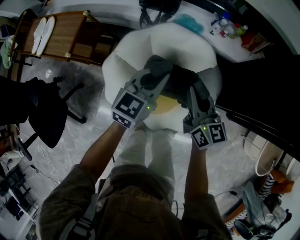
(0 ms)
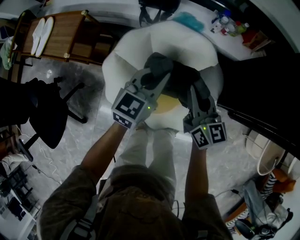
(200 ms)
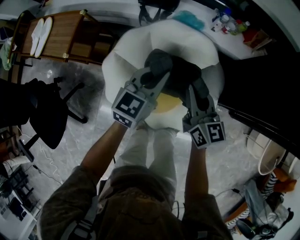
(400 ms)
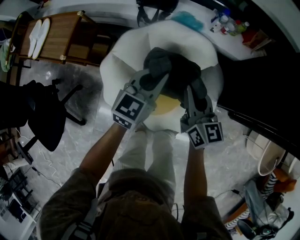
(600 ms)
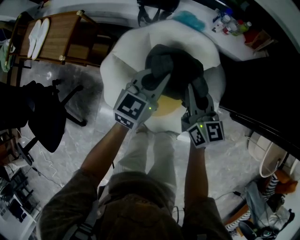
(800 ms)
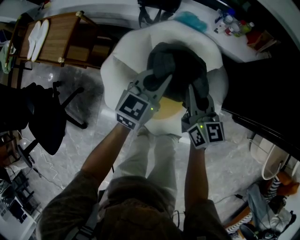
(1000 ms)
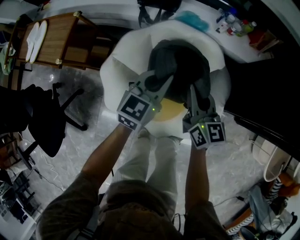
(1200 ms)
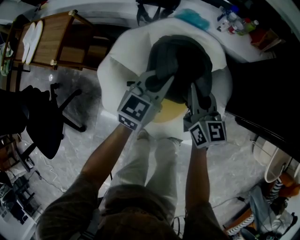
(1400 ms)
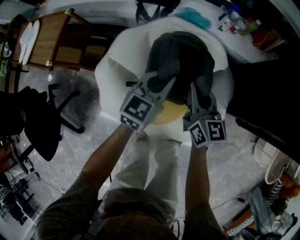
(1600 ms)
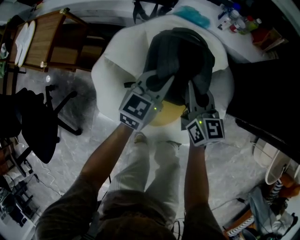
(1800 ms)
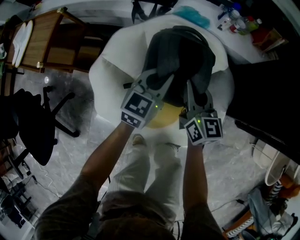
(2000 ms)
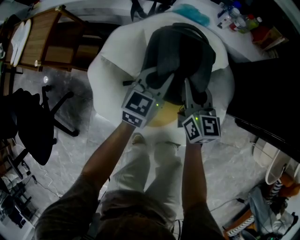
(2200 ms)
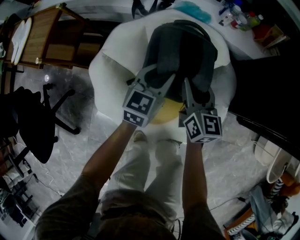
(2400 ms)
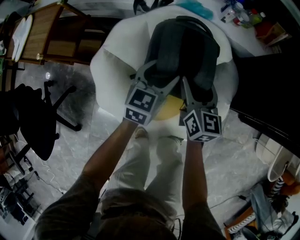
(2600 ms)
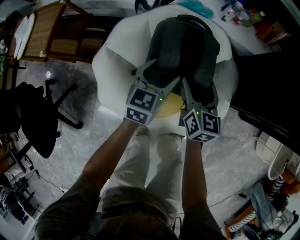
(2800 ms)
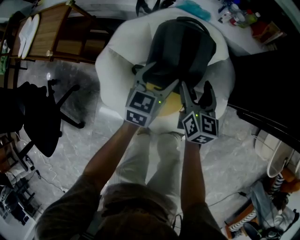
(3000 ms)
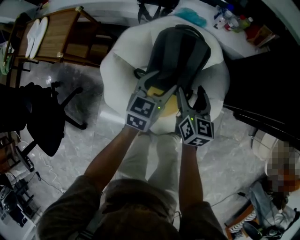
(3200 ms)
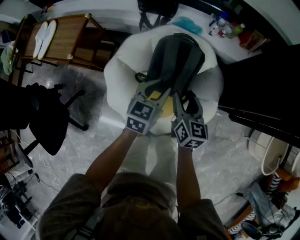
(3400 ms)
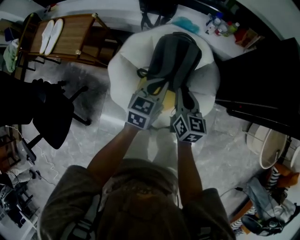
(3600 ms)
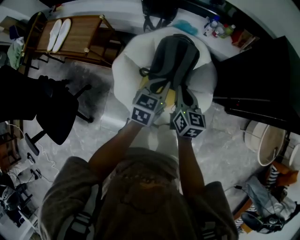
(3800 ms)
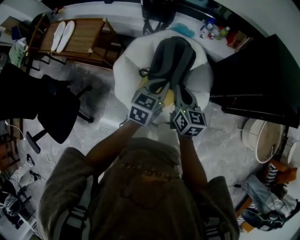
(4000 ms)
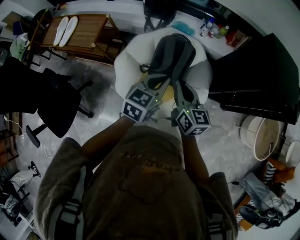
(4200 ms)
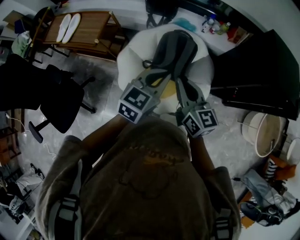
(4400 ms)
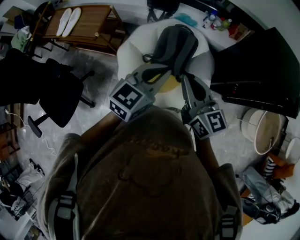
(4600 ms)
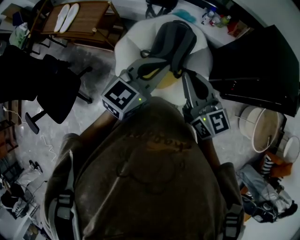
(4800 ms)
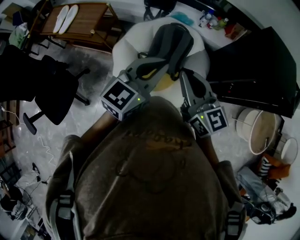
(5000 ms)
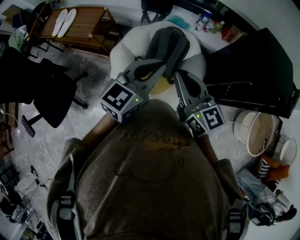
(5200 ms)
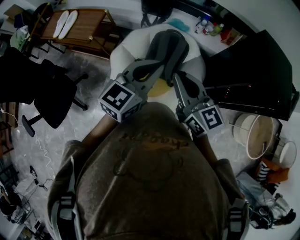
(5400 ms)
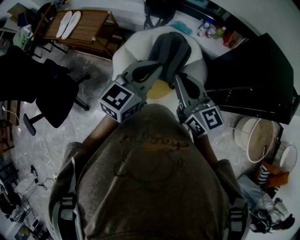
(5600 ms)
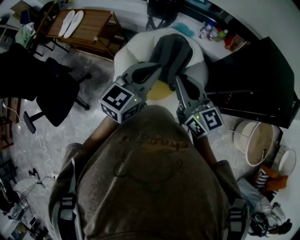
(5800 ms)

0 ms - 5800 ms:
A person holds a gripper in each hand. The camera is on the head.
0 ms - 1400 ms: The two grippers go about 10 cm downward.
1400 ms - 2800 ms: Both grippers move downward, approximately 10 cm. The right gripper opens; the left gripper opens up.
2800 ms - 4400 ms: Both grippers move upward and backward, some 40 cm. The right gripper changes its angle by approximately 20 degrees, and closes up, while the left gripper closes.
4400 ms - 5800 ms: The grippers both shift upward by roughly 5 cm.

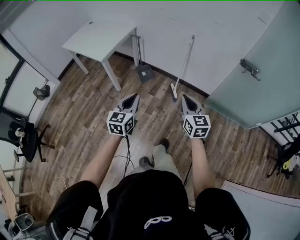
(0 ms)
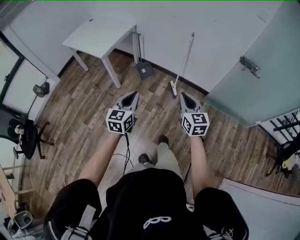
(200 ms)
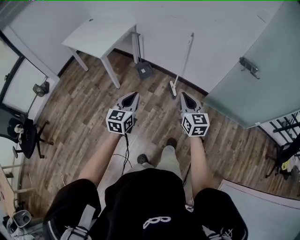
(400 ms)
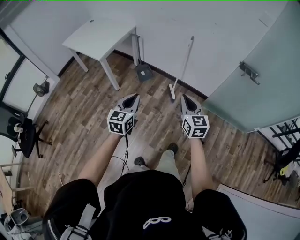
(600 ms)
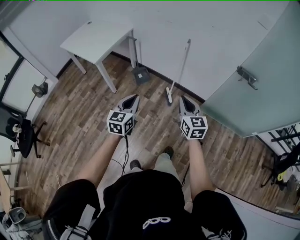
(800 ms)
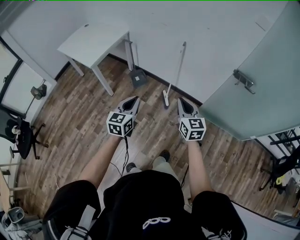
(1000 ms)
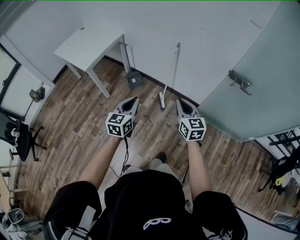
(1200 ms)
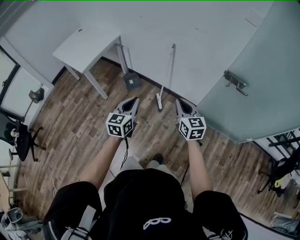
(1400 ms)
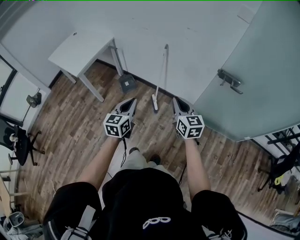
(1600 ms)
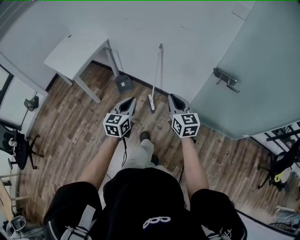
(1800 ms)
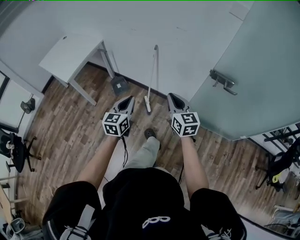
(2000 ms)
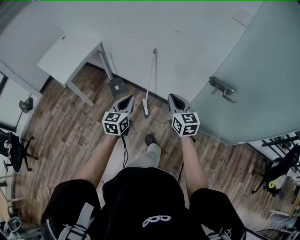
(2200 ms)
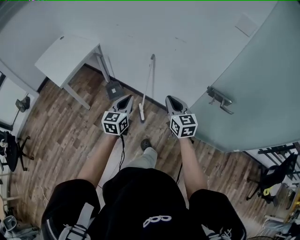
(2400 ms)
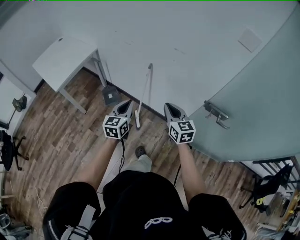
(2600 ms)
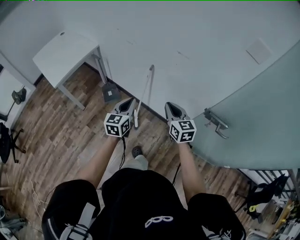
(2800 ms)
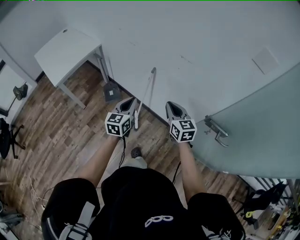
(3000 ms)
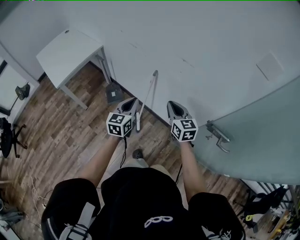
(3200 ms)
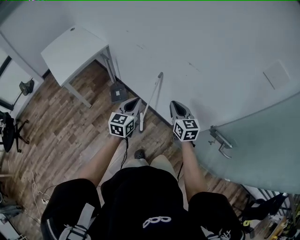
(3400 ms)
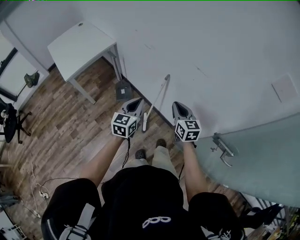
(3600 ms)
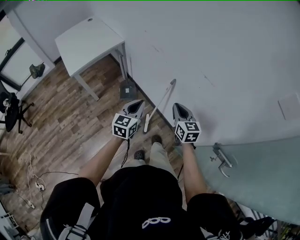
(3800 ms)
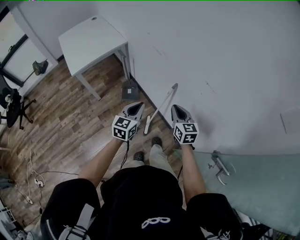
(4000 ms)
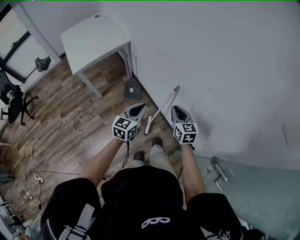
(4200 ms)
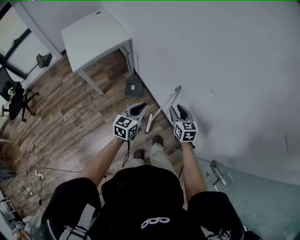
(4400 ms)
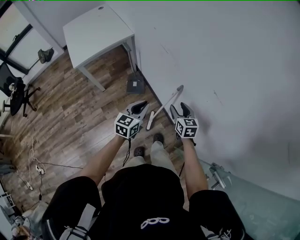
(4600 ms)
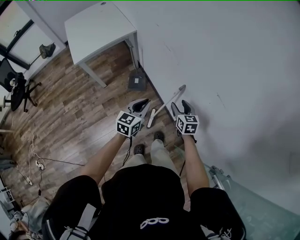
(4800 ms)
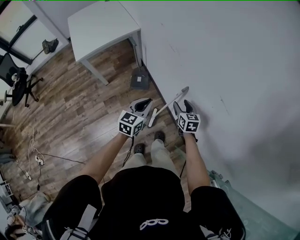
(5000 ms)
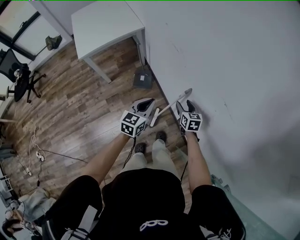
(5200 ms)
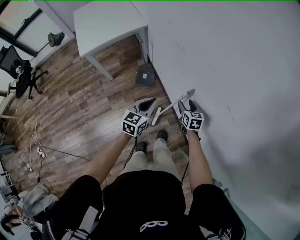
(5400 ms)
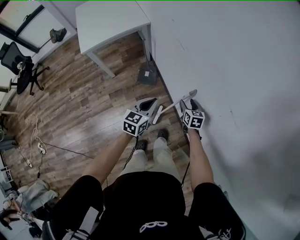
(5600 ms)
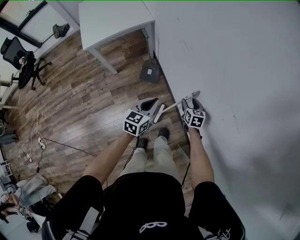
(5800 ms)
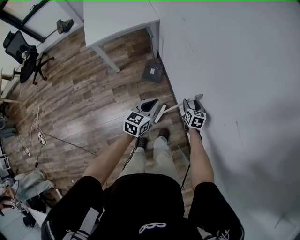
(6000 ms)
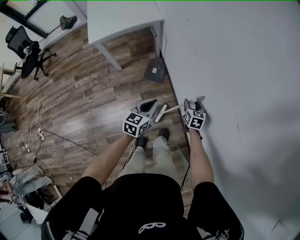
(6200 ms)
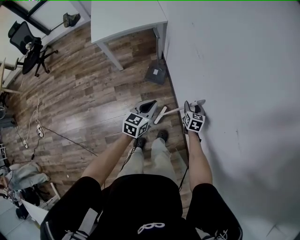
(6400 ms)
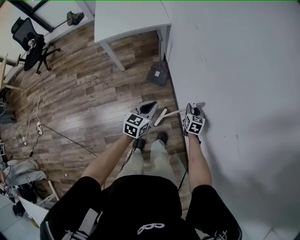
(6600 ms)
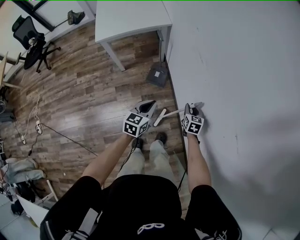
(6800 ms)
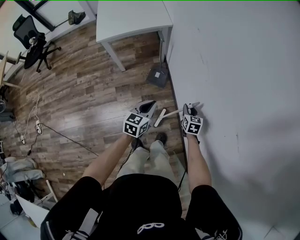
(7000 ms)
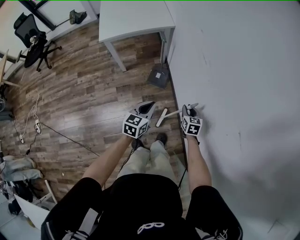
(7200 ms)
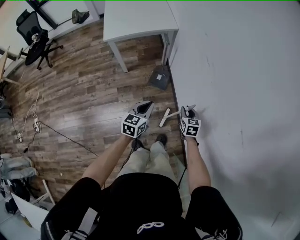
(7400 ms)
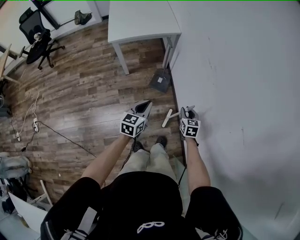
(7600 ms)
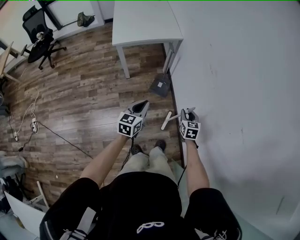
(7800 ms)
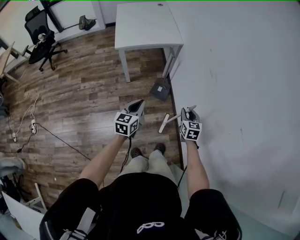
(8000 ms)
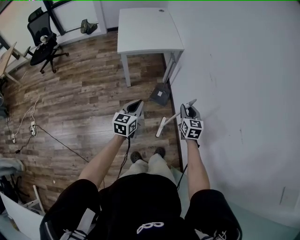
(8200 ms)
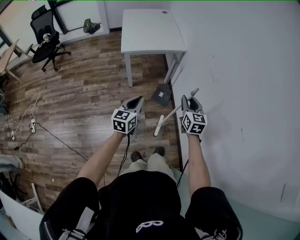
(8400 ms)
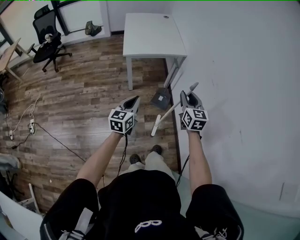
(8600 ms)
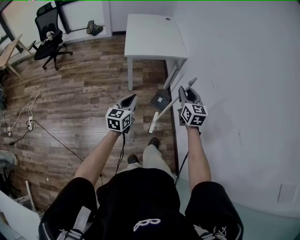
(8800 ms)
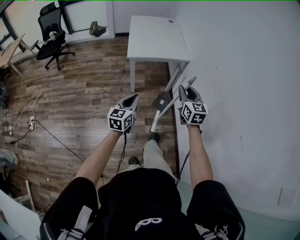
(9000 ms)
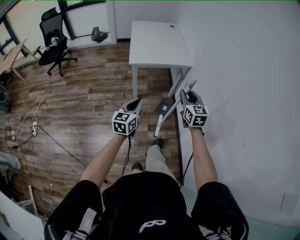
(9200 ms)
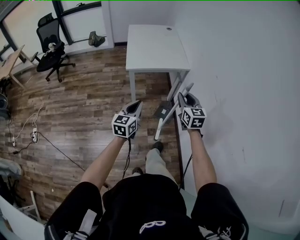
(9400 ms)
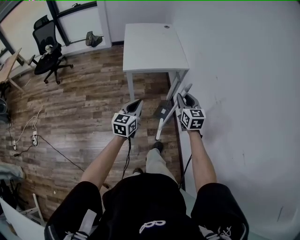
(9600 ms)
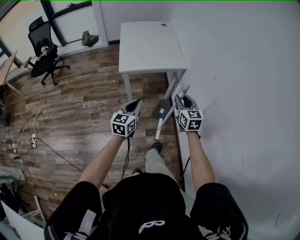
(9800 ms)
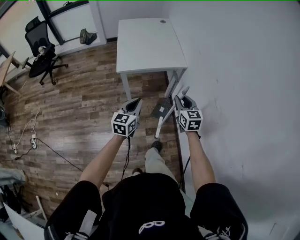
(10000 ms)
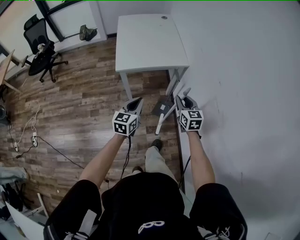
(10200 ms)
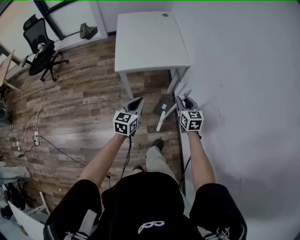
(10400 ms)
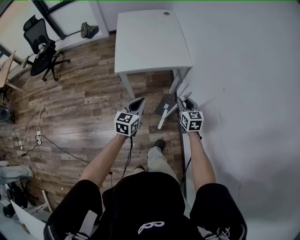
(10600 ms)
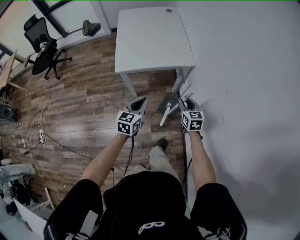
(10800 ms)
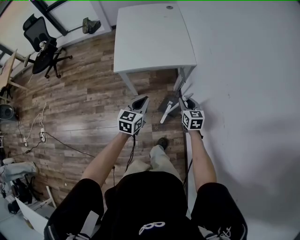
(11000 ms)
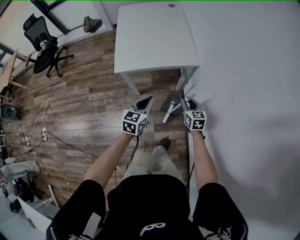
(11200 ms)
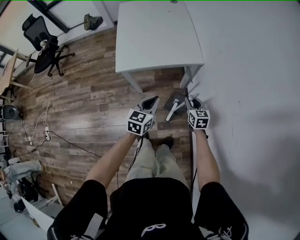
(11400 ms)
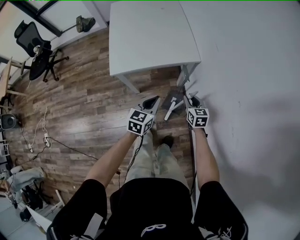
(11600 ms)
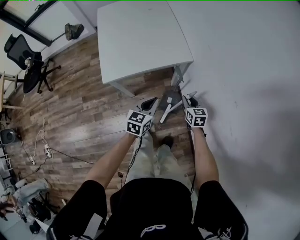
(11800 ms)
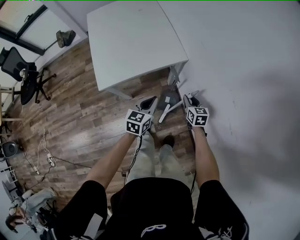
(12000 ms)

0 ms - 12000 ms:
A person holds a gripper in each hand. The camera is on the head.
0 ms - 1600 ms: Both grippers move to the right and forward, about 30 cm.
1600 ms - 3000 ms: The left gripper goes approximately 30 cm forward and to the right. Meanwhile the right gripper shifts approximately 30 cm forward.
3000 ms - 4400 ms: The left gripper goes approximately 10 cm forward and downward. The right gripper shifts some 20 cm forward and downward, and opens its fingers.
4400 ms - 6000 ms: The left gripper heads downward and forward, covering roughly 10 cm; the right gripper is displaced downward and forward by roughly 25 cm, and opens its fingers.
6000 ms - 7600 ms: The right gripper heads to the left and upward, covering approximately 10 cm, and closes. Meanwhile the left gripper moves to the left, about 10 cm.
7600 ms - 9000 ms: The right gripper shifts roughly 35 cm upward and to the left, and swivels roughly 30 degrees; the left gripper moves to the left and upward, roughly 20 cm.
9000 ms - 10400 ms: The right gripper is displaced forward and downward by some 25 cm, while the left gripper travels forward by about 25 cm.
10400 ms - 12000 ms: The left gripper goes about 20 cm forward, downward and to the right, while the right gripper heads downward and forward, covering roughly 20 cm, and changes its angle by approximately 20 degrees.

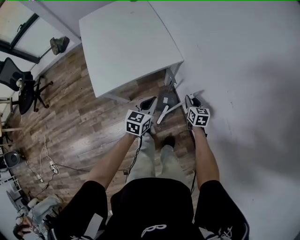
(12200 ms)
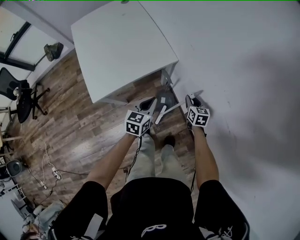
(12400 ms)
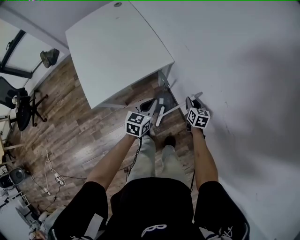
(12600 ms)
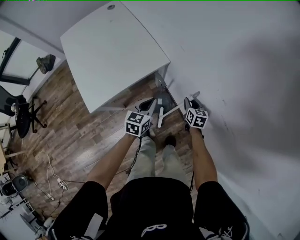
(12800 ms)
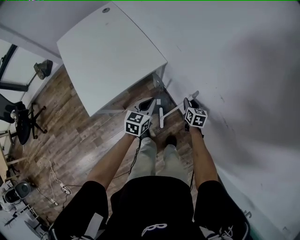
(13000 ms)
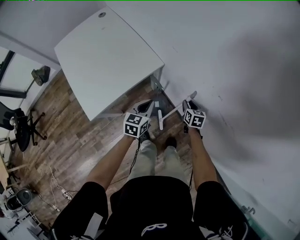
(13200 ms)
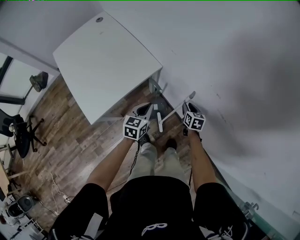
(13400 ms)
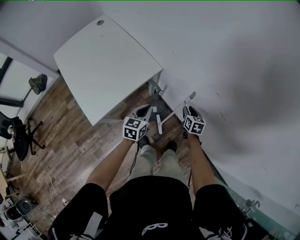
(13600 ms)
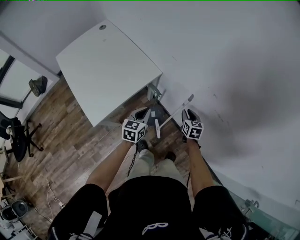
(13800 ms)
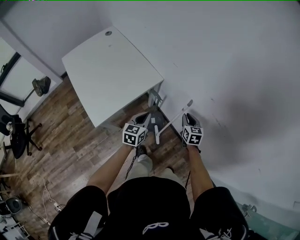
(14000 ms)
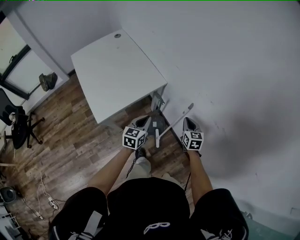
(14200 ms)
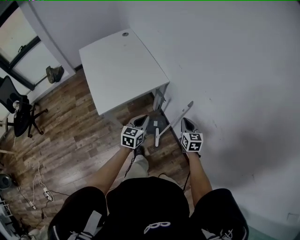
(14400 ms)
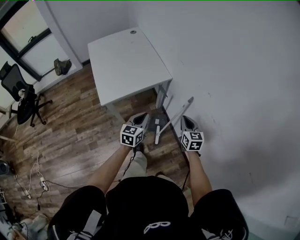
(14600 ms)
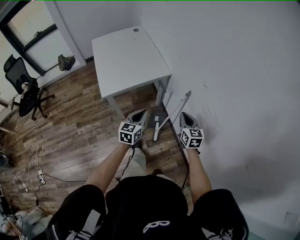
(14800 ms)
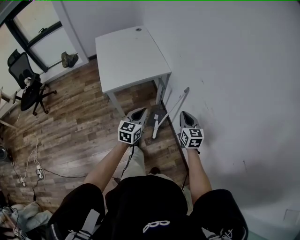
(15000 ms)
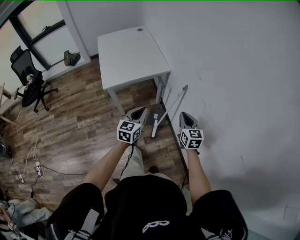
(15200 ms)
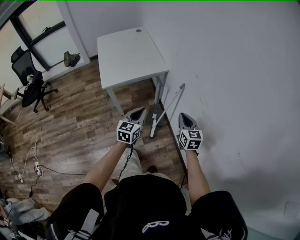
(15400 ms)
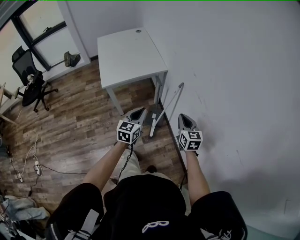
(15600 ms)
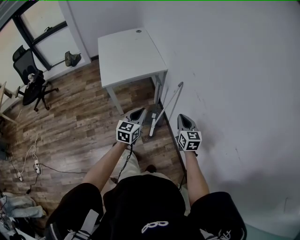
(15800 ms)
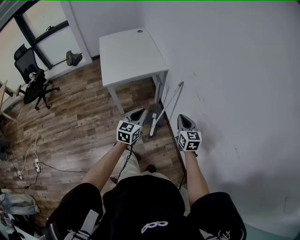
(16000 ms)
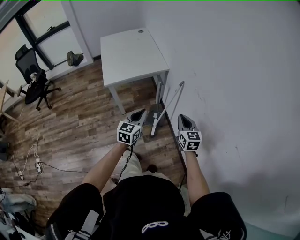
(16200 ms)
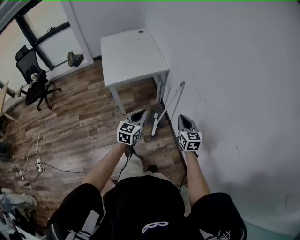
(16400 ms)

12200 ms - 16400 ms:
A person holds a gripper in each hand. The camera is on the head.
12200 ms - 13600 ms: The right gripper is displaced to the right by approximately 5 cm, and turns by some 30 degrees.
13600 ms - 15000 ms: The right gripper moves upward and backward, roughly 25 cm, rotates approximately 40 degrees, and closes. The left gripper shifts roughly 25 cm backward and upward, and changes its angle by about 30 degrees.
15000 ms - 16400 ms: Both grippers travel together backward, some 10 cm.

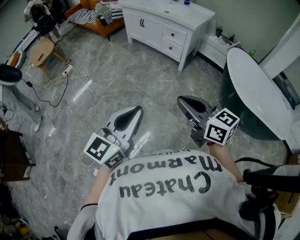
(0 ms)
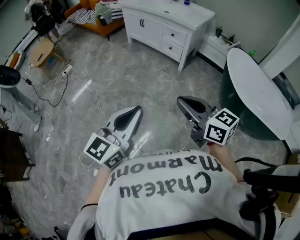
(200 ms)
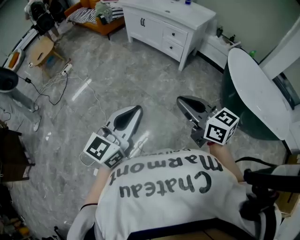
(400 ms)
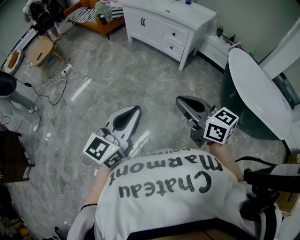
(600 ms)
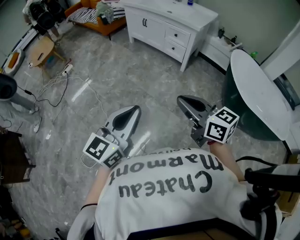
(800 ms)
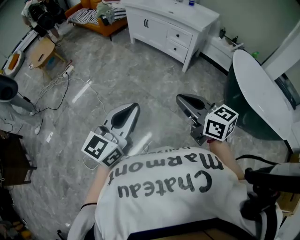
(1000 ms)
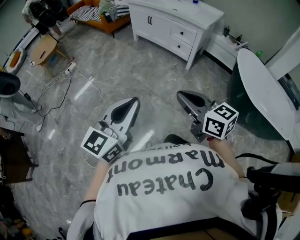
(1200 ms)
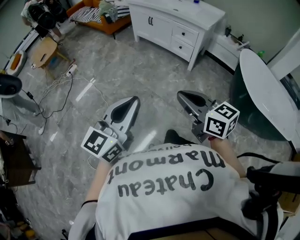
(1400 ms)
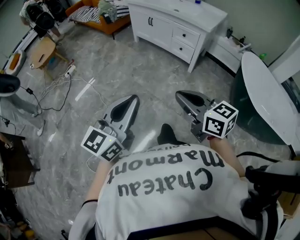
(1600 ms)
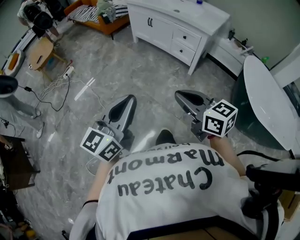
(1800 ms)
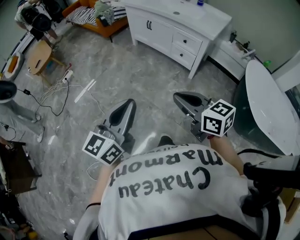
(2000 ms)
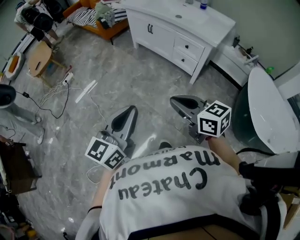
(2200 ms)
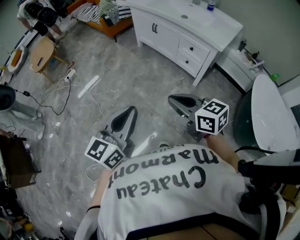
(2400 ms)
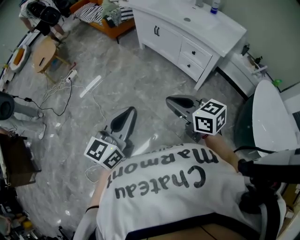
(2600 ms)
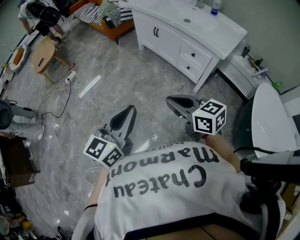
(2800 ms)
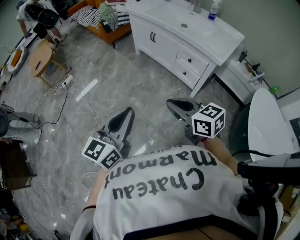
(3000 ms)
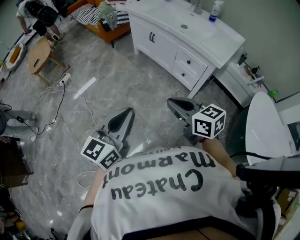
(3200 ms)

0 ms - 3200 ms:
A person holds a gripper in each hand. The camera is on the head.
0 ms - 1600 ms: Both grippers move forward and to the left, approximately 15 cm.
1600 ms - 3200 ms: Both grippers move forward, roughly 30 cm.
